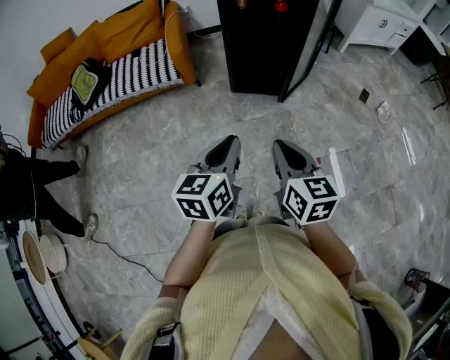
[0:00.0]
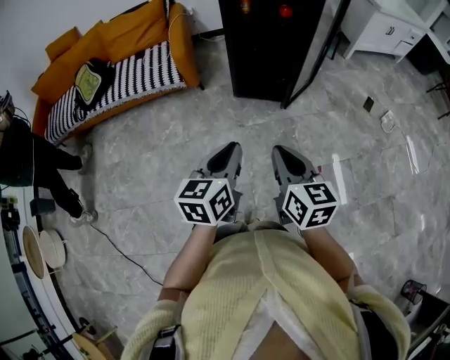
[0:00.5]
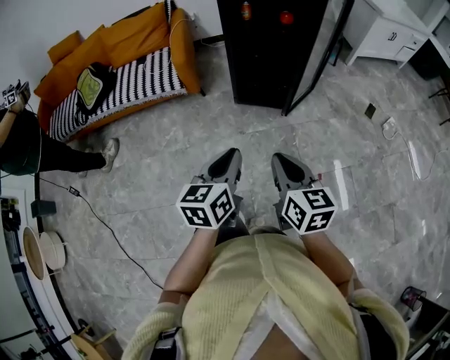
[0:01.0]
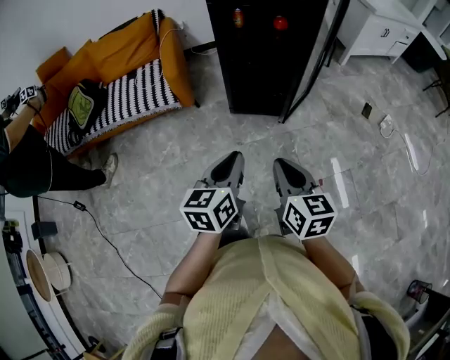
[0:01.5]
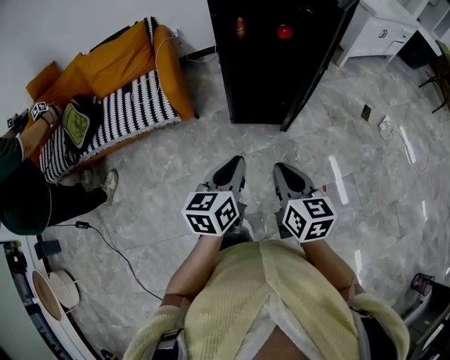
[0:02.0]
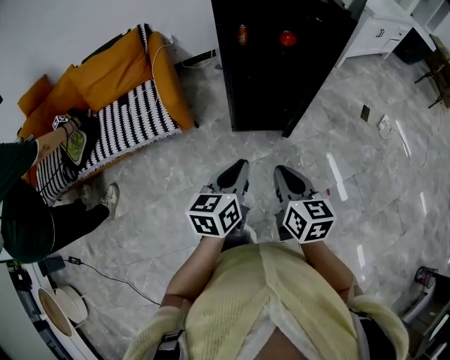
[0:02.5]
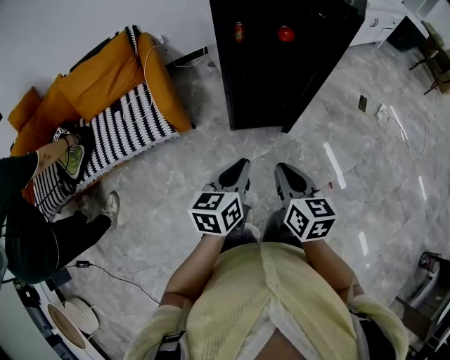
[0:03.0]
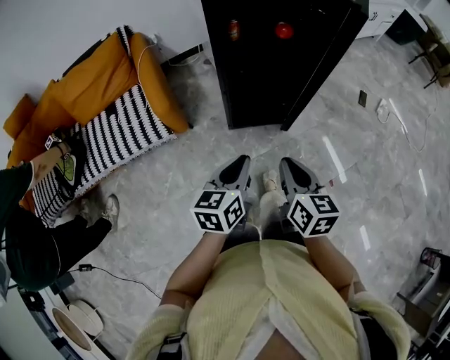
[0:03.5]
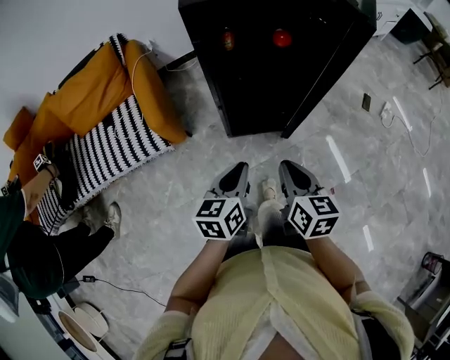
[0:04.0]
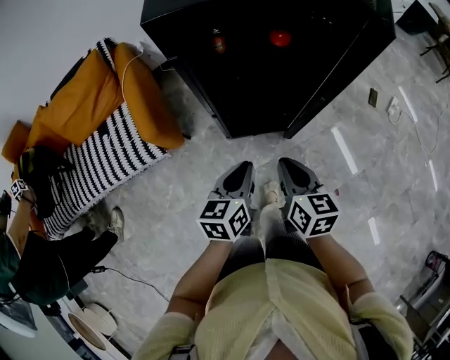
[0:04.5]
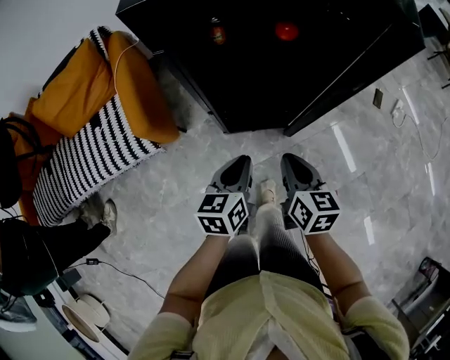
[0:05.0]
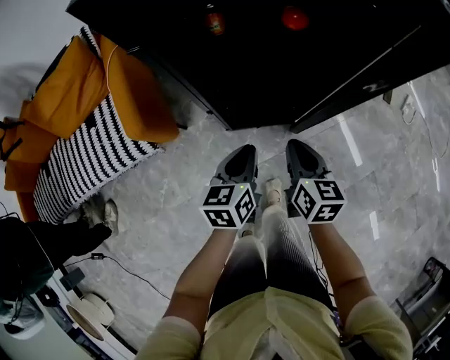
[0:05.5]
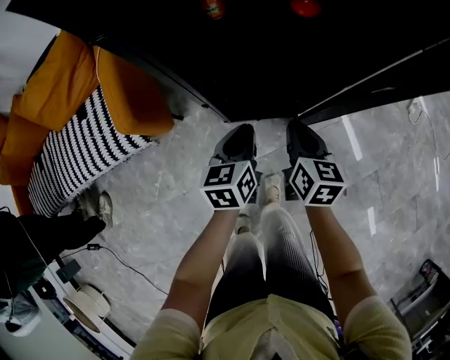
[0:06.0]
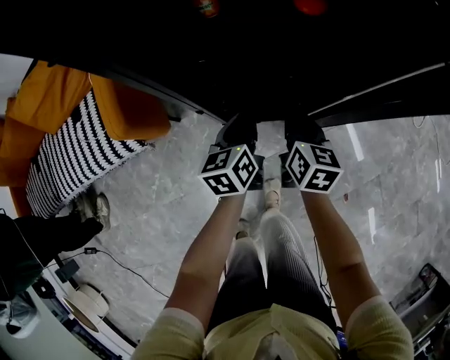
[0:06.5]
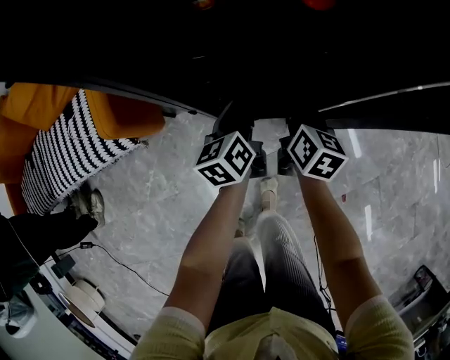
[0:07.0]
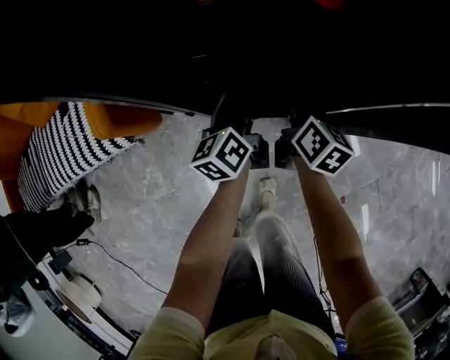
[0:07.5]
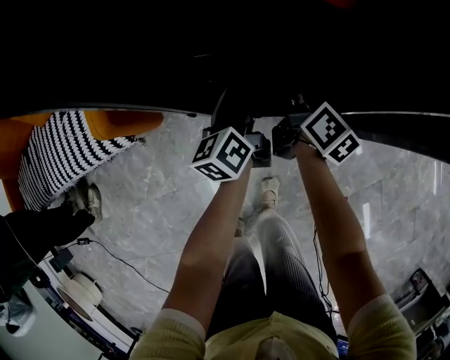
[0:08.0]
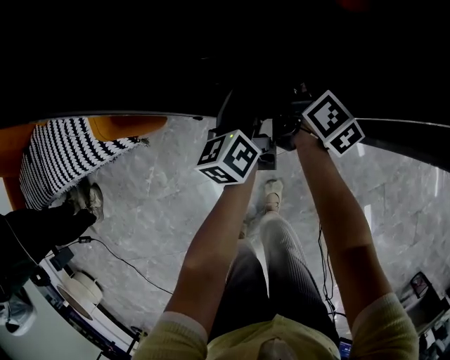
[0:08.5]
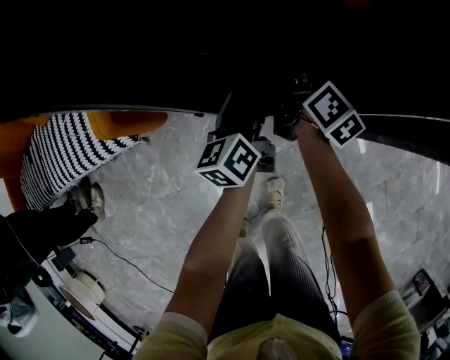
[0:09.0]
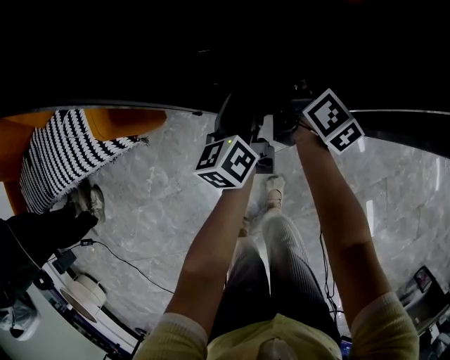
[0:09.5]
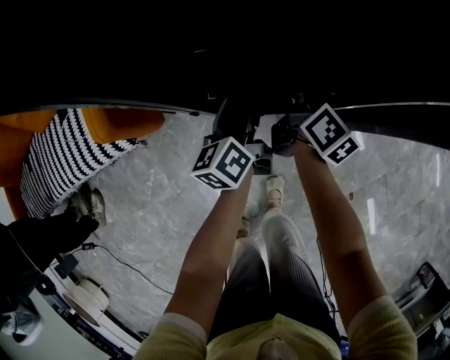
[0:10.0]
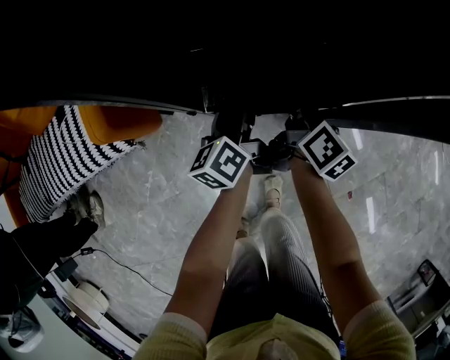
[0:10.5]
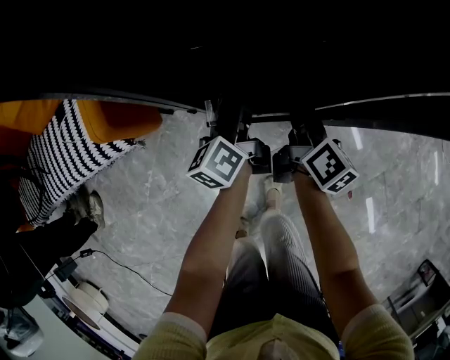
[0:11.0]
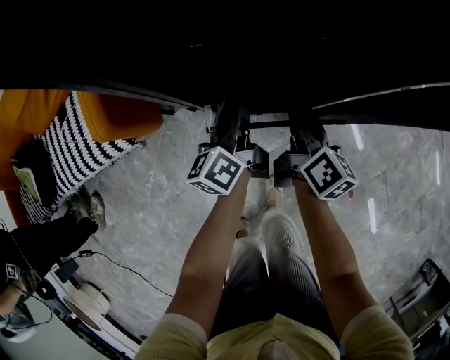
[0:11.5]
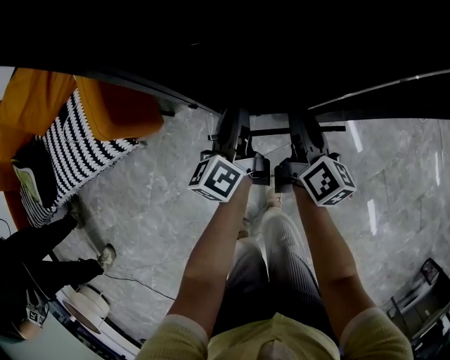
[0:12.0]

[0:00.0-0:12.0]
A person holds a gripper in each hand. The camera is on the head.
0:00.0 to 0:02.0: Both grippers move forward, approximately 15 cm.
0:02.0 to 0:04.0: Both grippers travel together forward, some 15 cm.
0:04.0 to 0:06.0: The grippers both shift forward and downward by approximately 25 cm.
0:06.0 to 0:08.0: Both grippers travel together forward and downward, roughly 15 cm. The left gripper changes its angle by approximately 30 degrees, and opens up. The right gripper changes its angle by some 30 degrees, and opens its fingers.
0:08.0 to 0:10.0: There are only small adjustments of the grippers.
0:10.0 to 0:12.0: The left gripper shifts by about 5 cm, and closes up. Meanwhile the right gripper goes approximately 10 cm backward.

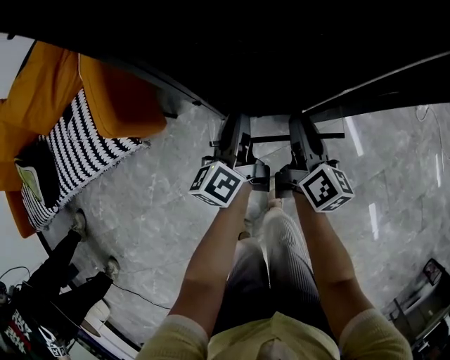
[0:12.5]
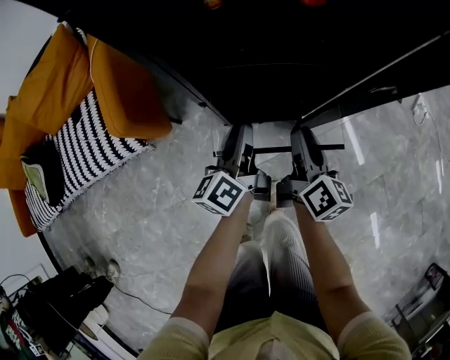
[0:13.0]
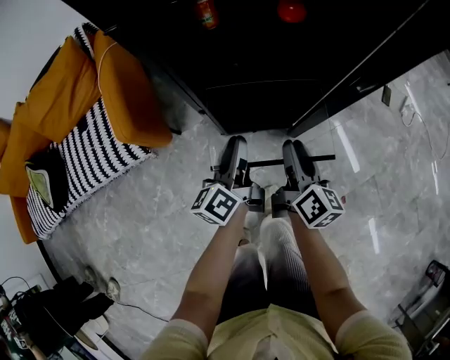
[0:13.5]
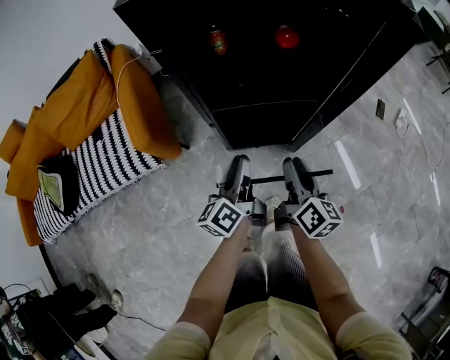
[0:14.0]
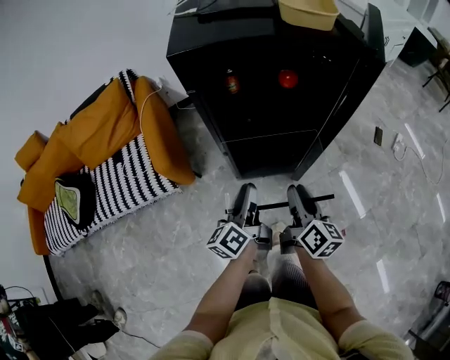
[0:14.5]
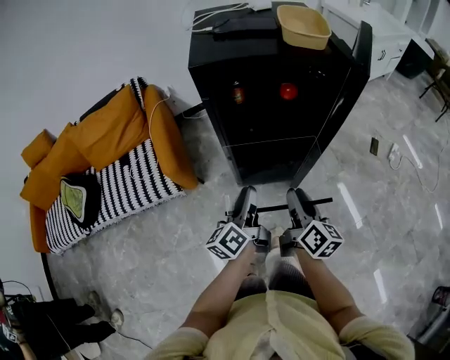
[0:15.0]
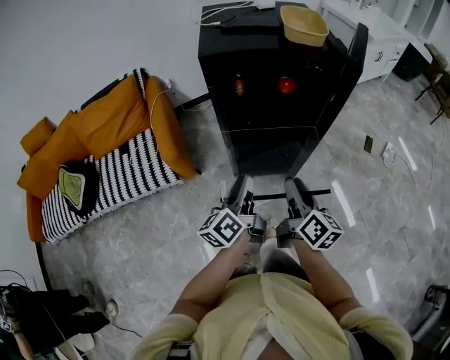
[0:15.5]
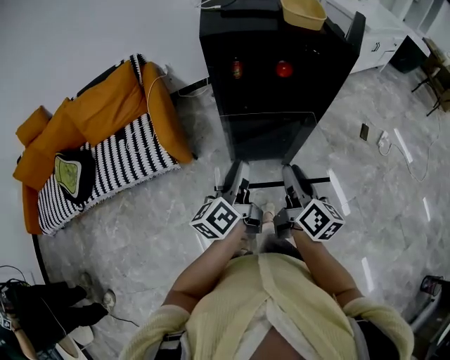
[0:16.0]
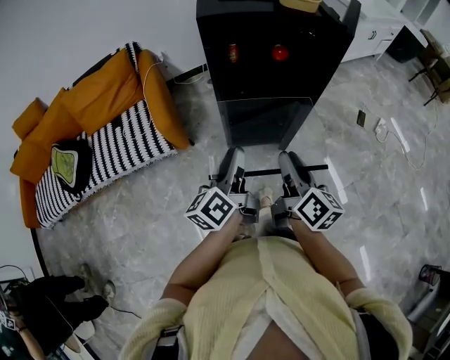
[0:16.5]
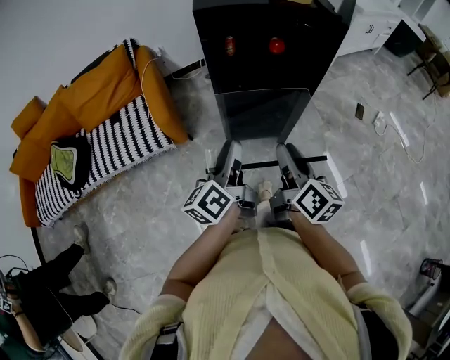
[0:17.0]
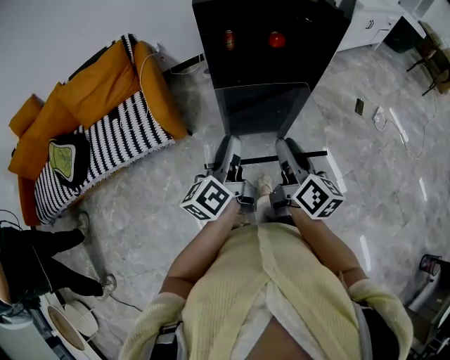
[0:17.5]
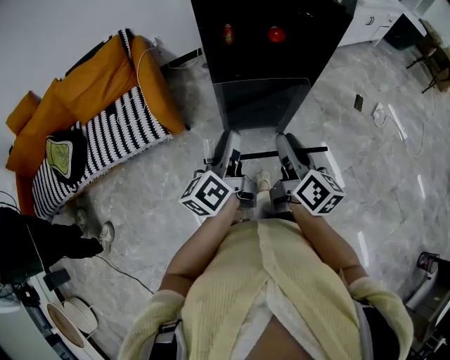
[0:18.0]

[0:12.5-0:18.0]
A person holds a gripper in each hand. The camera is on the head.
0:12.5 to 0:14.5: The grippers both shift upward and backward by about 20 cm.
0:14.5 to 0:16.0: Both grippers travel together upward and backward, some 15 cm.
0:16.0 to 0:18.0: The grippers move only a little.

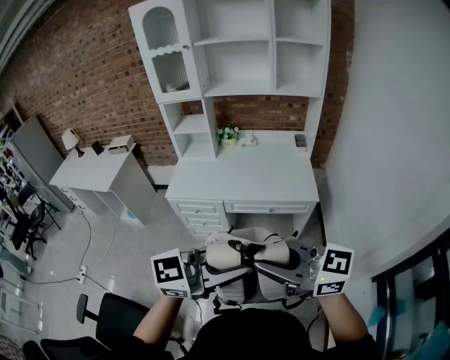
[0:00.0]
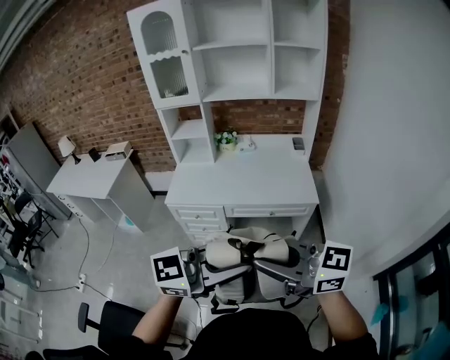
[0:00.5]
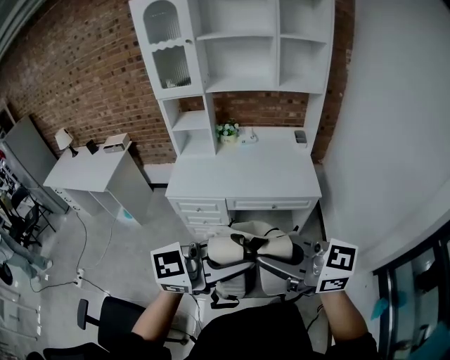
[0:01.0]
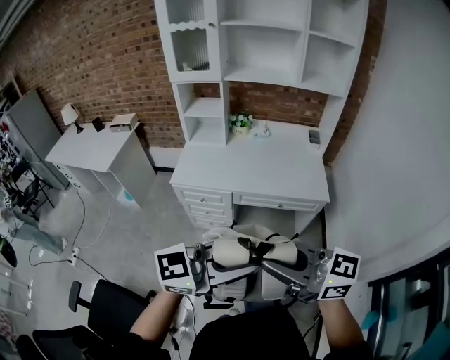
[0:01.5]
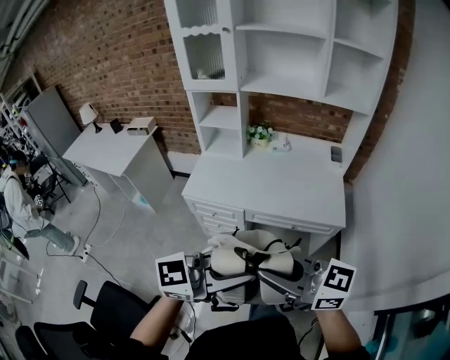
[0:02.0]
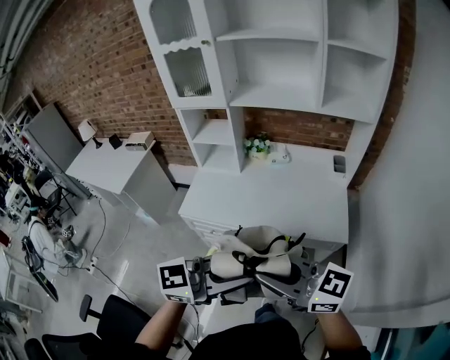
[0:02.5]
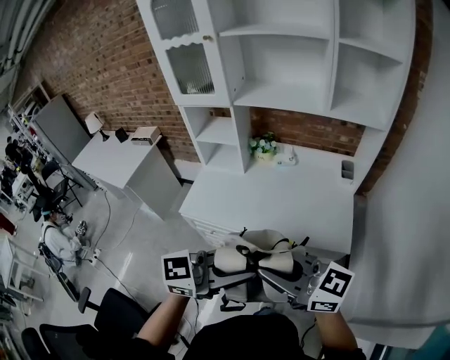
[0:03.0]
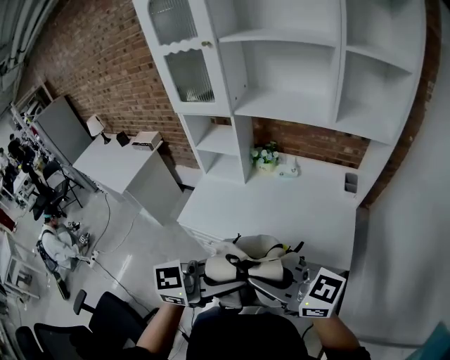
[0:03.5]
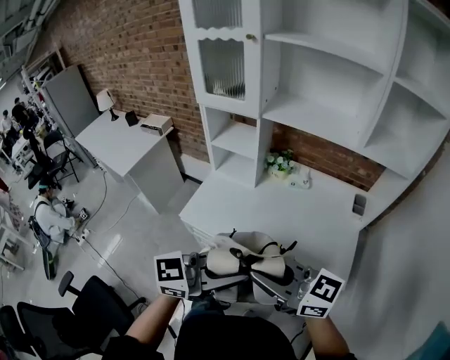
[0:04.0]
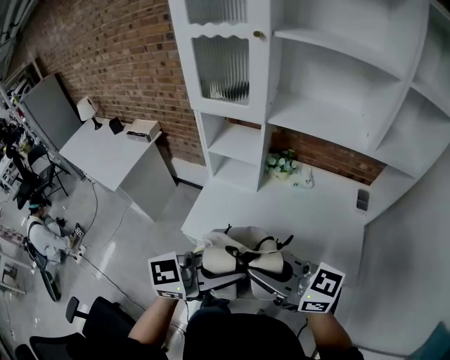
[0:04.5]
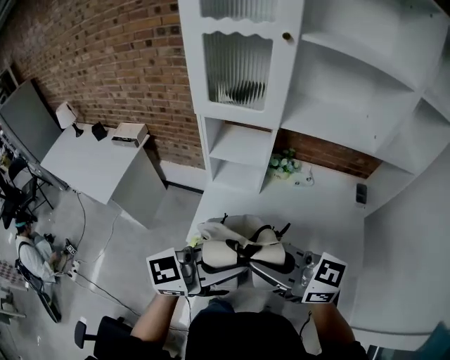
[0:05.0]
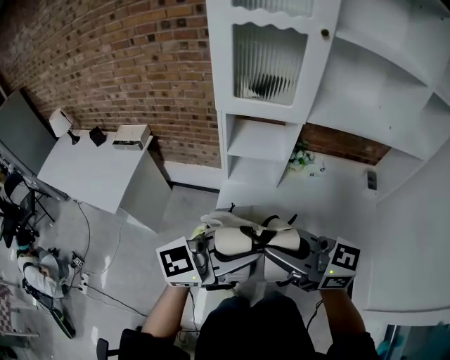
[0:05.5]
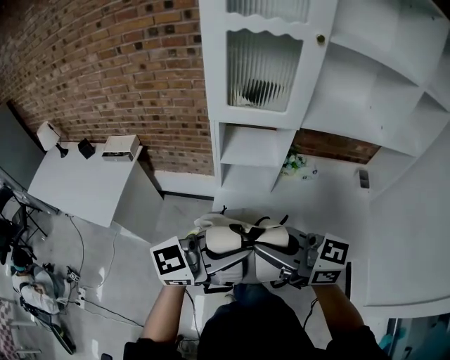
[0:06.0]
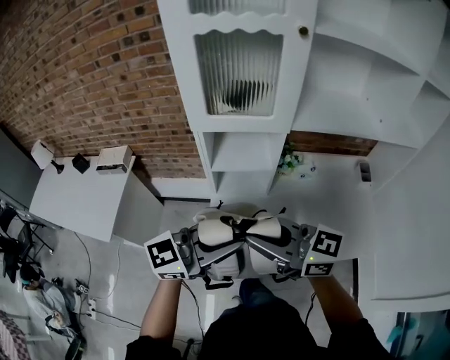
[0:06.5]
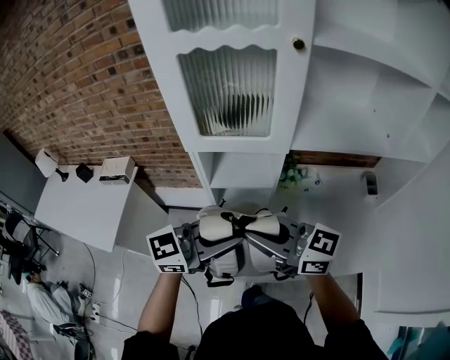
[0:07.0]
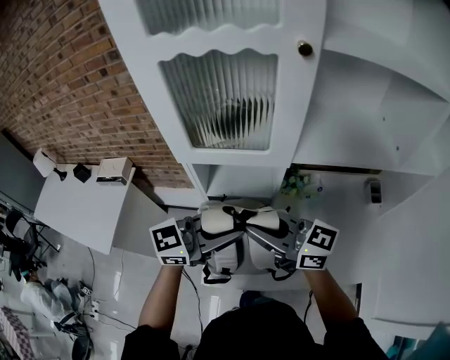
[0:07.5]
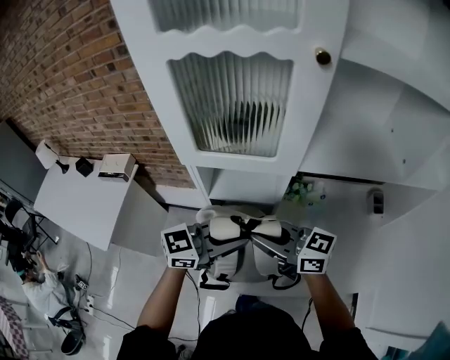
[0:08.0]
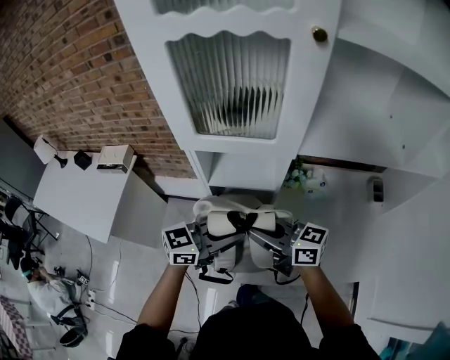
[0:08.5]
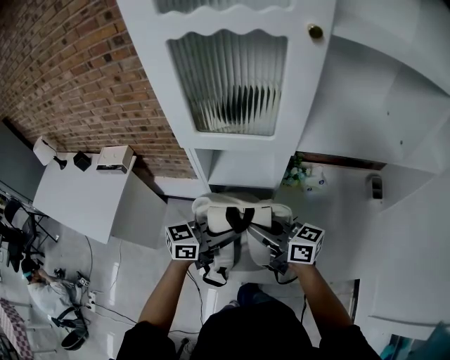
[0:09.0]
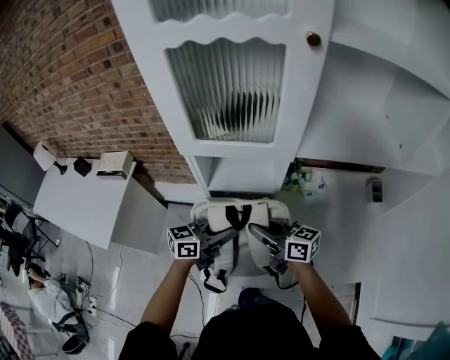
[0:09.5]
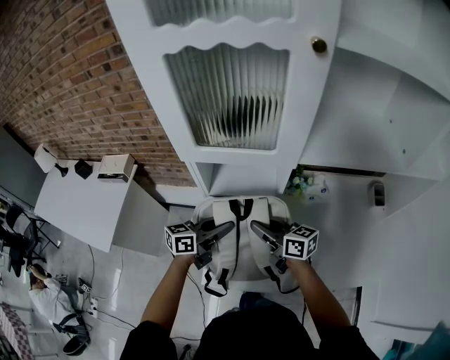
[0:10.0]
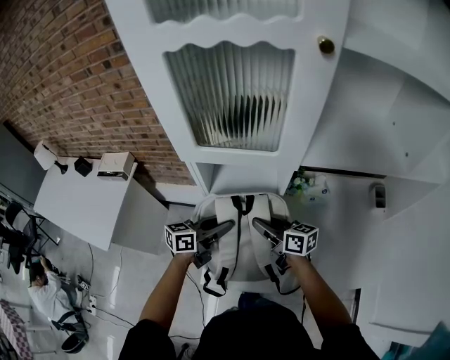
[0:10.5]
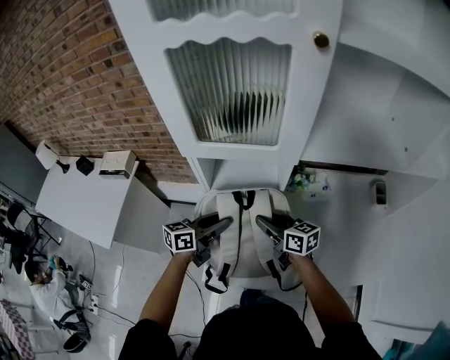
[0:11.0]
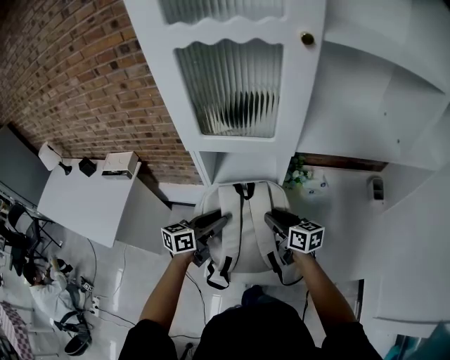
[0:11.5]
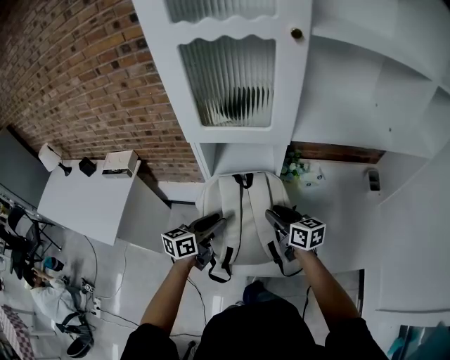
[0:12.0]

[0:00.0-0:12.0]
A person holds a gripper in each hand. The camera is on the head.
0:00.0 to 0:02.0: The left gripper ends up about 15 cm from where it was. Meanwhile the right gripper changes place by some 15 cm.
0:02.0 to 0:04.0: The right gripper shifts by approximately 25 cm; the left gripper ends up some 25 cm from where it was.
0:04.0 to 0:06.0: The right gripper ends up roughly 35 cm from where it was. The left gripper changes place by about 35 cm.
0:06.0 to 0:08.0: The left gripper changes place by some 25 cm, while the right gripper ends up about 25 cm from where it was.
0:08.0 to 0:10.0: The grippers both shift downward by approximately 15 cm. The right gripper turns by about 20 degrees, while the left gripper turns by approximately 30 degrees.
0:10.0 to 0:12.0: The right gripper shifts about 5 cm to the right; the left gripper travels backward by about 5 cm.
